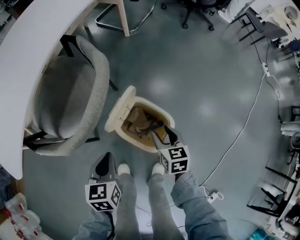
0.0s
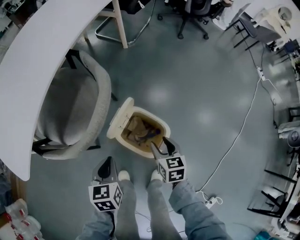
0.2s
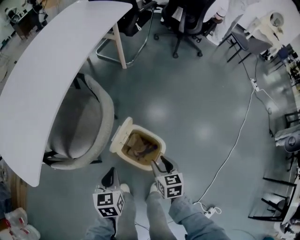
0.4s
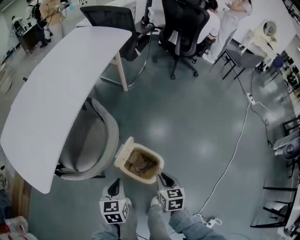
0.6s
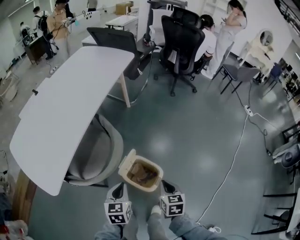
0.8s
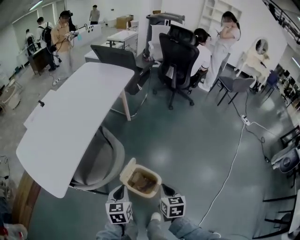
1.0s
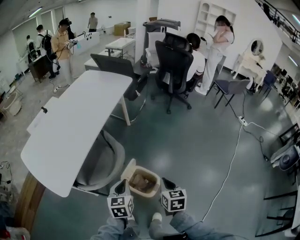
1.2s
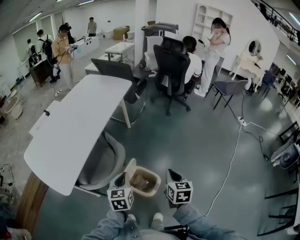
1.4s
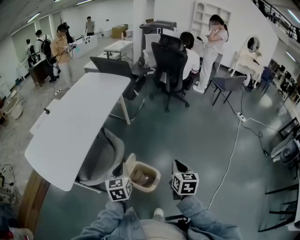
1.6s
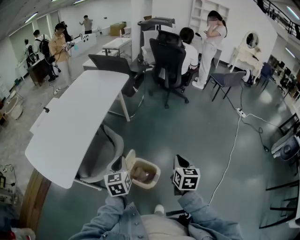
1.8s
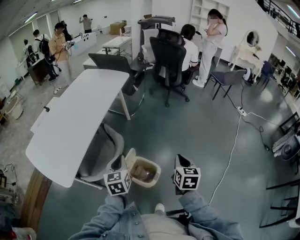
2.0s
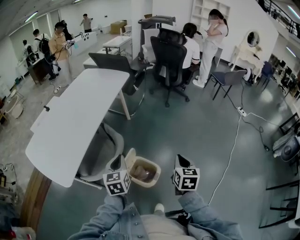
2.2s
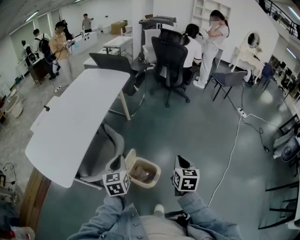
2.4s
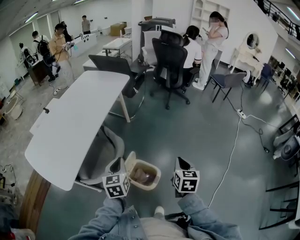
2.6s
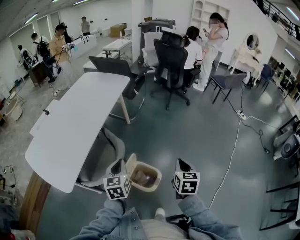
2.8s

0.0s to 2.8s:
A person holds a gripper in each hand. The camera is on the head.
0.0s to 1.4s: The grippers both shift upward by approximately 40 cm. The right gripper closes.
1.4s to 2.8s: The right gripper shifts by approximately 5 cm.

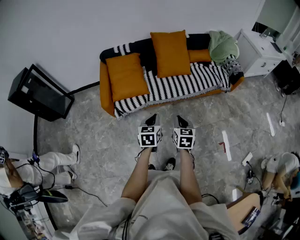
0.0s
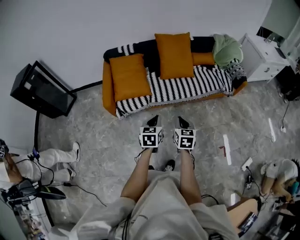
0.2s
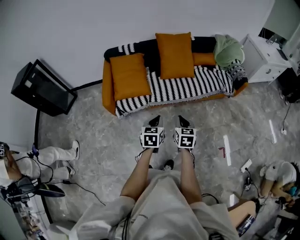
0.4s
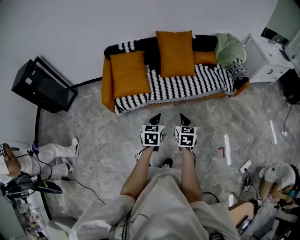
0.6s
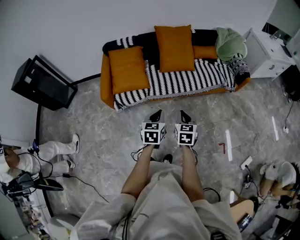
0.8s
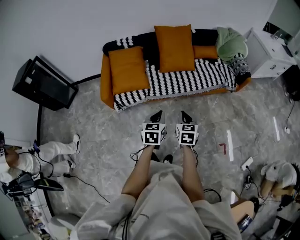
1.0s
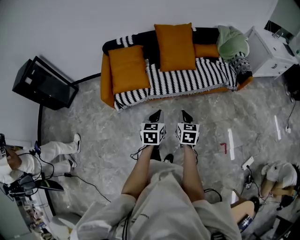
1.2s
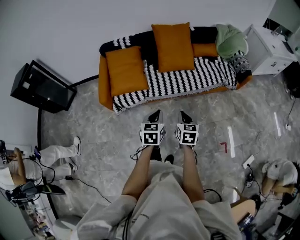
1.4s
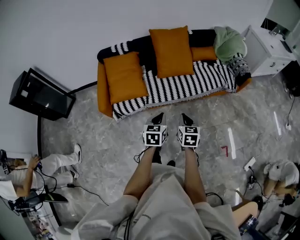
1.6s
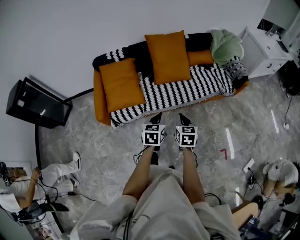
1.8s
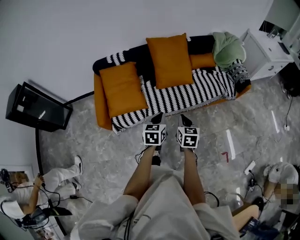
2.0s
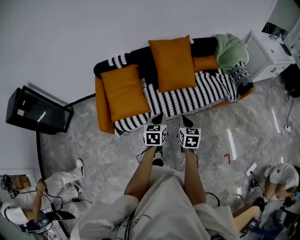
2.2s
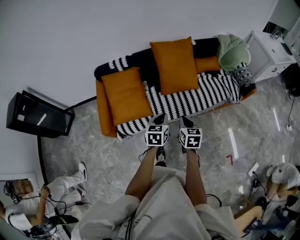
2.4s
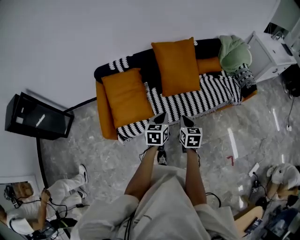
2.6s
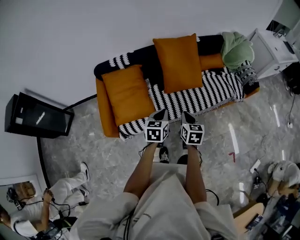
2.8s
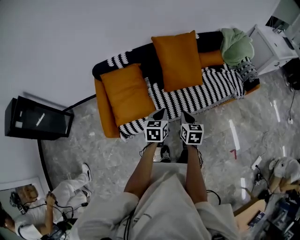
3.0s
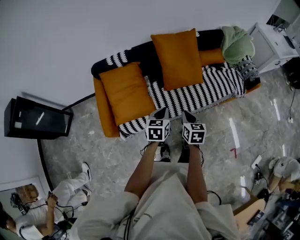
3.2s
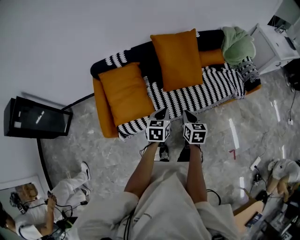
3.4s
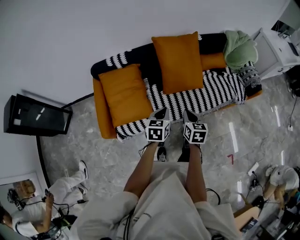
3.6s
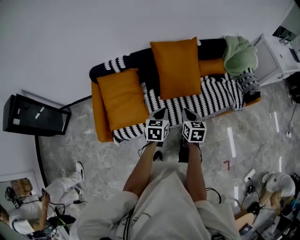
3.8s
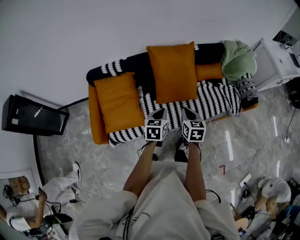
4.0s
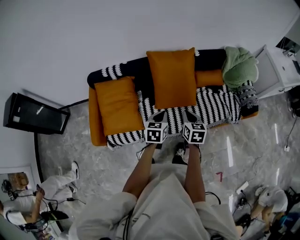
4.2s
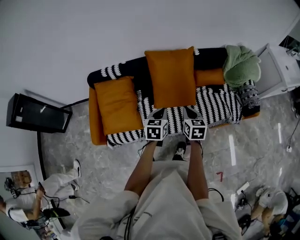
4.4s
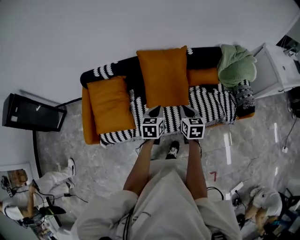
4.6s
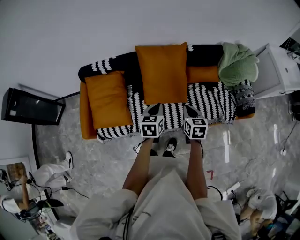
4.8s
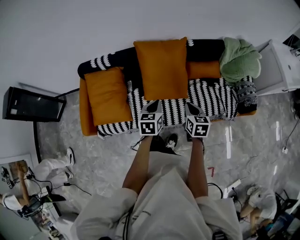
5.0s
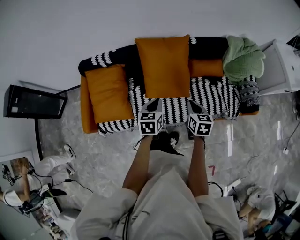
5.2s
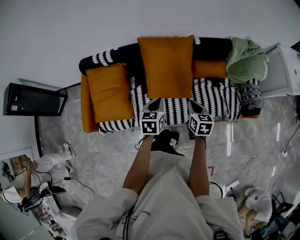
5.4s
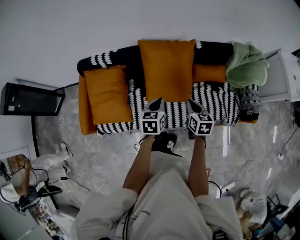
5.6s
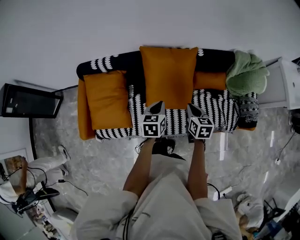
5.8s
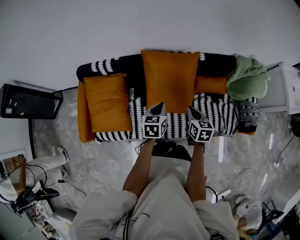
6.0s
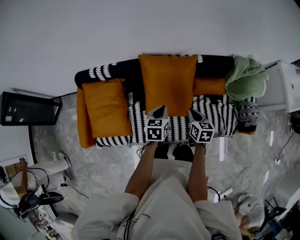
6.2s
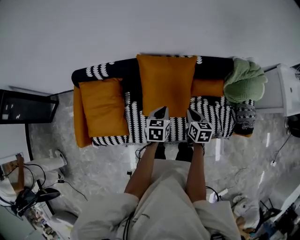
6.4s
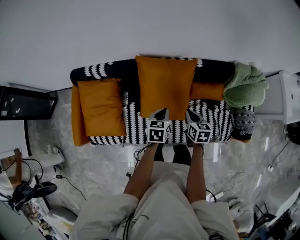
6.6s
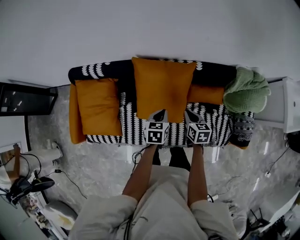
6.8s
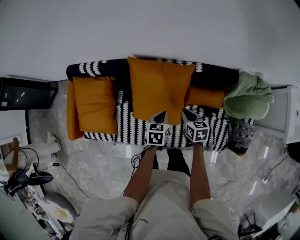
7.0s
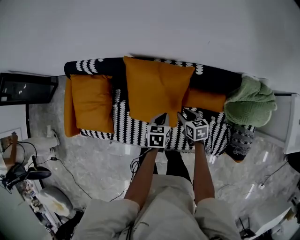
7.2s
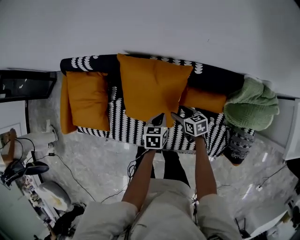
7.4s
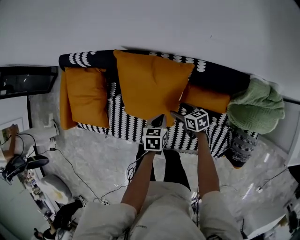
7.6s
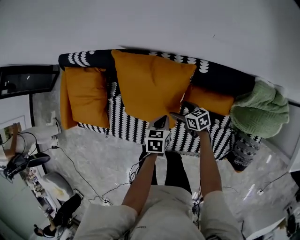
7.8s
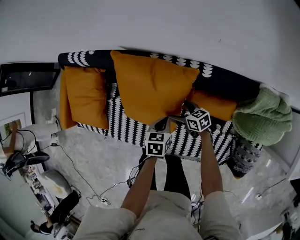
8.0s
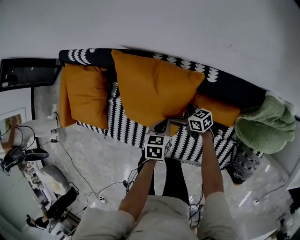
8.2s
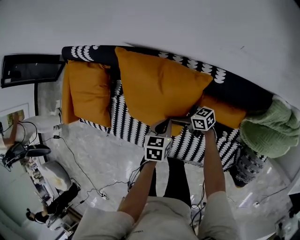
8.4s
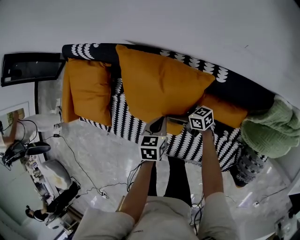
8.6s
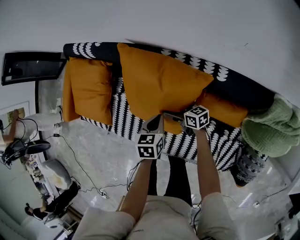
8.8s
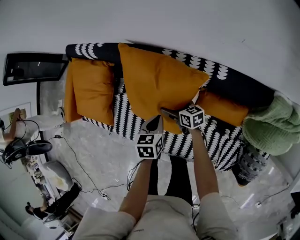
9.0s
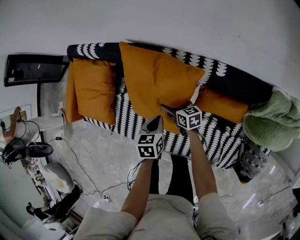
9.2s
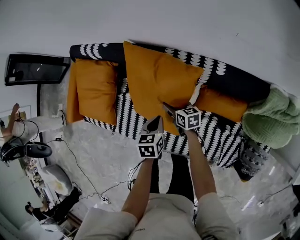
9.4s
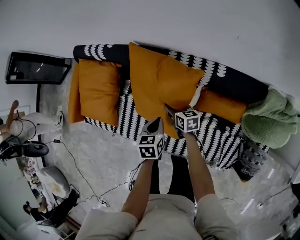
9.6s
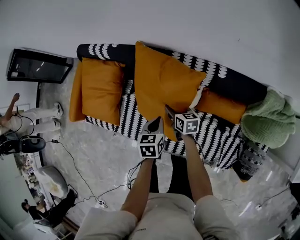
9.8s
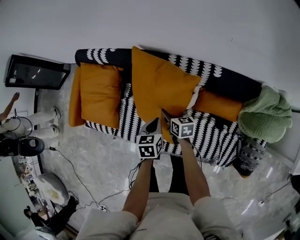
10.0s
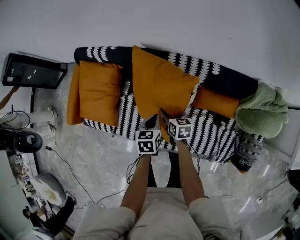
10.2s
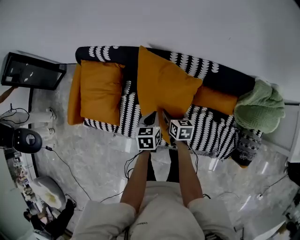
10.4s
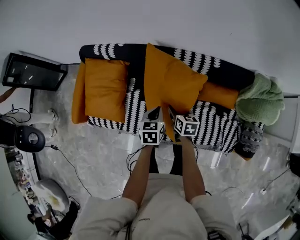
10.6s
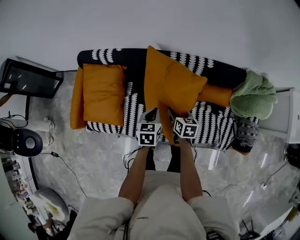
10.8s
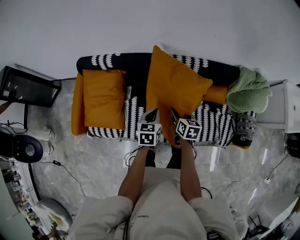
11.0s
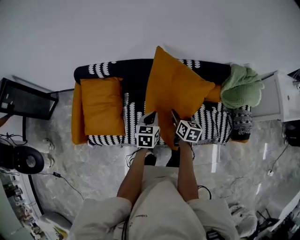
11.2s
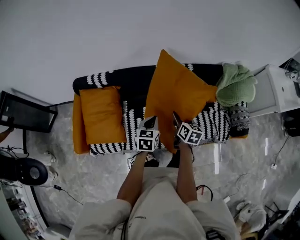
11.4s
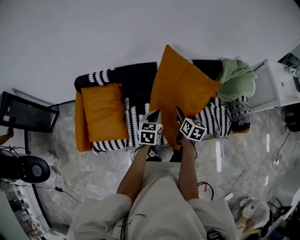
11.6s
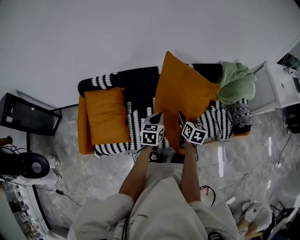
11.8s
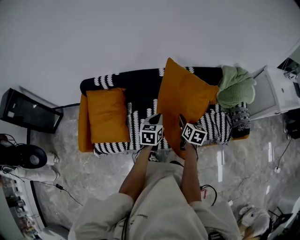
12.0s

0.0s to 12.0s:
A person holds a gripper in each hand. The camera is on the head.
0.0s to 1.6s: Both grippers move forward and to the right, about 10 cm.
1.6s to 3.0s: The grippers both shift forward and to the left by some 25 cm.
3.0s to 4.4s: Both grippers move forward and to the right, about 25 cm.
4.4s to 6.0s: Both grippers move forward, approximately 15 cm.
6.0s to 7.6s: The right gripper heads downward, covering approximately 20 cm, swivels roughly 40 degrees, and opens. Meanwhile the left gripper ends up about 25 cm from where it was, and rotates approximately 20 degrees.
7.6s to 9.0s: The right gripper travels forward, to the left and downward by roughly 15 cm, and opens its fingers. Meanwhile the left gripper shifts by some 5 cm.
9.0s to 10.4s: The right gripper moves upward, backward and to the left, some 20 cm, rotates some 30 degrees, and closes its fingers. The left gripper travels to the left and upward by roughly 15 cm.
10.4s to 12.0s: Both grippers travel together upward, approximately 15 cm. The right gripper turns by approximately 30 degrees, while the left gripper changes its angle by roughly 30 degrees.

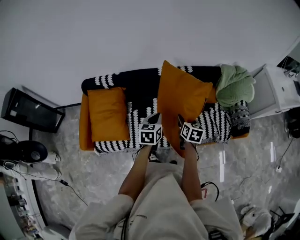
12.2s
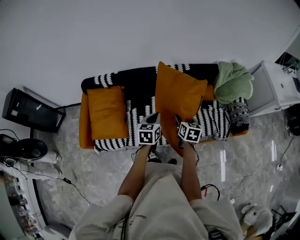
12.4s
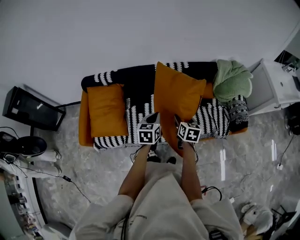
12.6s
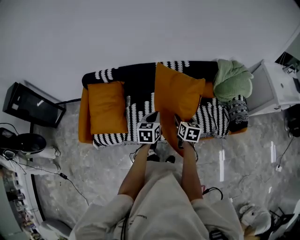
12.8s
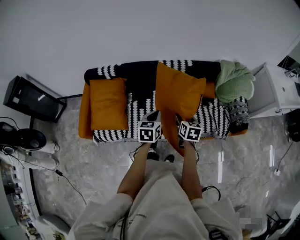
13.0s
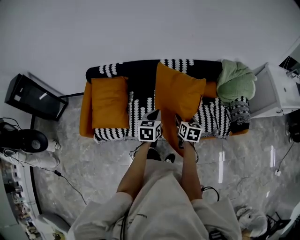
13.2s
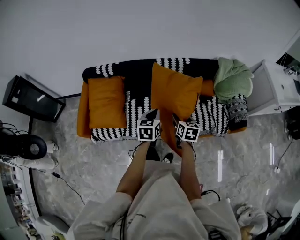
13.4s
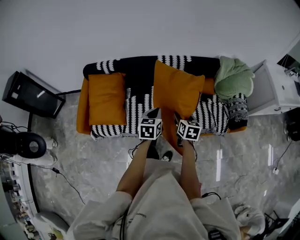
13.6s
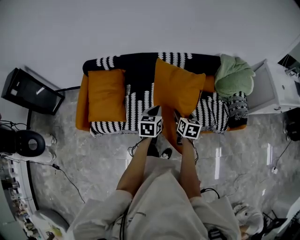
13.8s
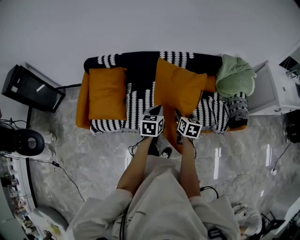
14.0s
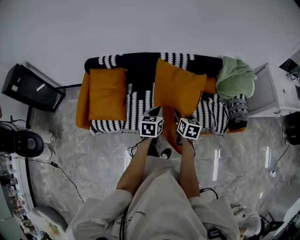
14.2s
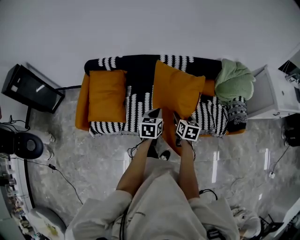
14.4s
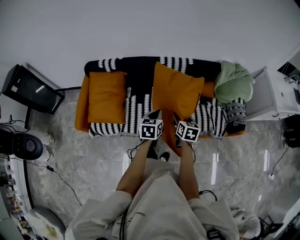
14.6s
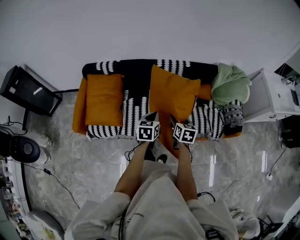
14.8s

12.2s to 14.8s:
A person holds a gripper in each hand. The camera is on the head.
12.2s to 13.4s: The grippers both shift backward by roughly 10 cm.
13.4s to 14.8s: The grippers make only small movements.

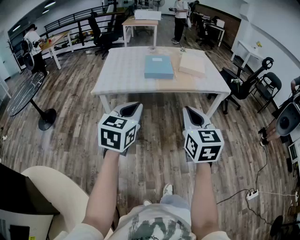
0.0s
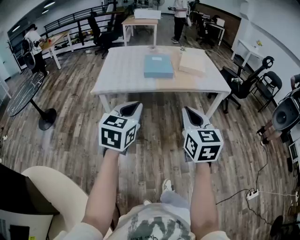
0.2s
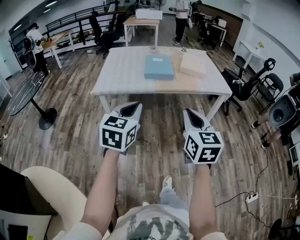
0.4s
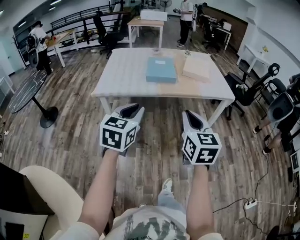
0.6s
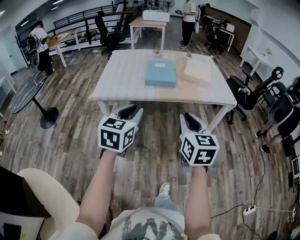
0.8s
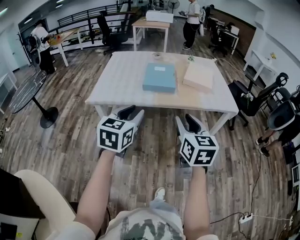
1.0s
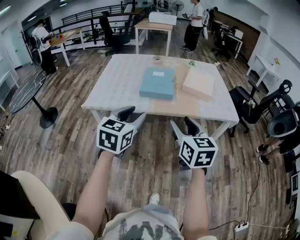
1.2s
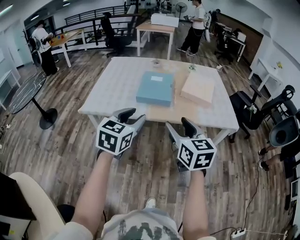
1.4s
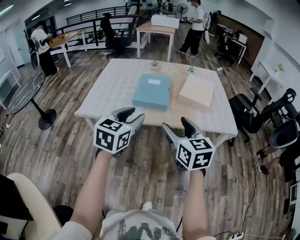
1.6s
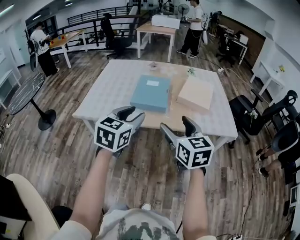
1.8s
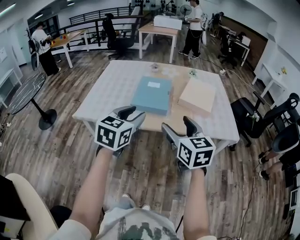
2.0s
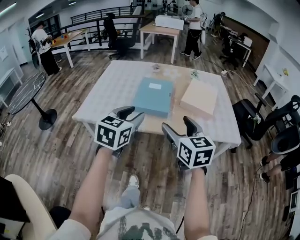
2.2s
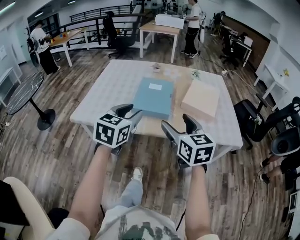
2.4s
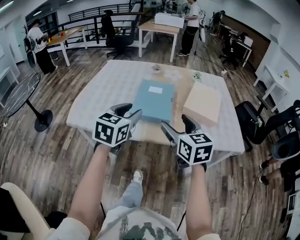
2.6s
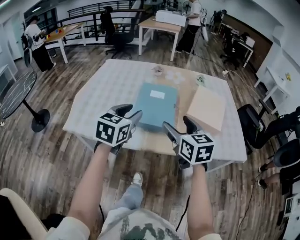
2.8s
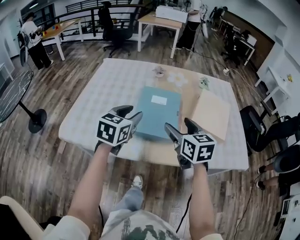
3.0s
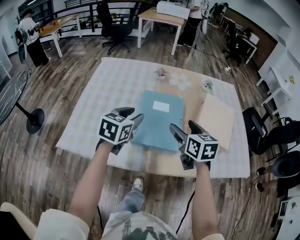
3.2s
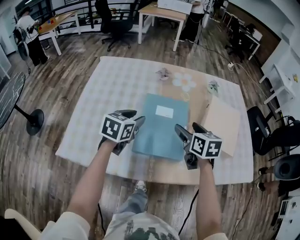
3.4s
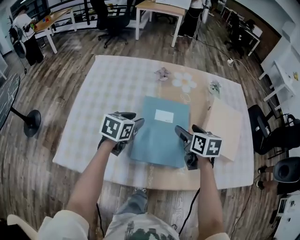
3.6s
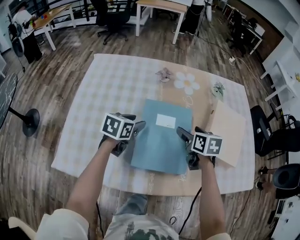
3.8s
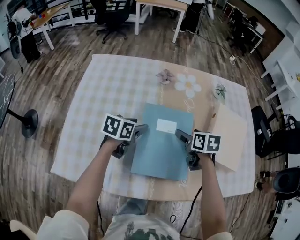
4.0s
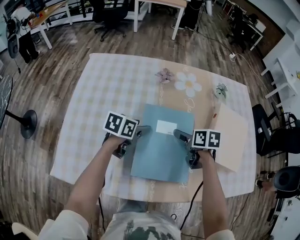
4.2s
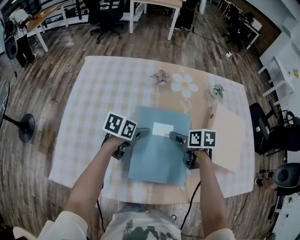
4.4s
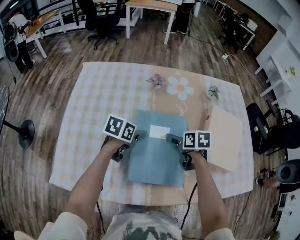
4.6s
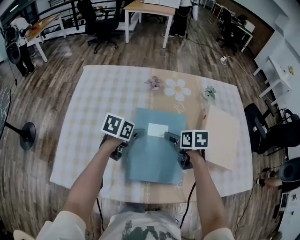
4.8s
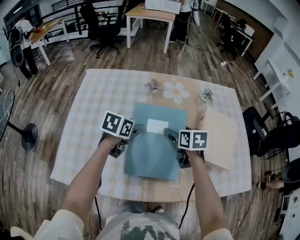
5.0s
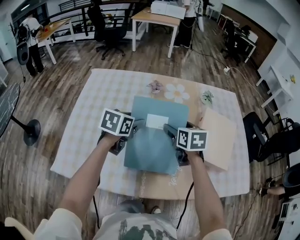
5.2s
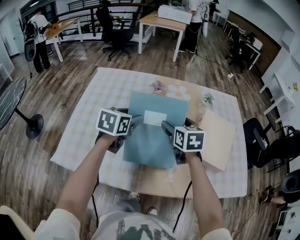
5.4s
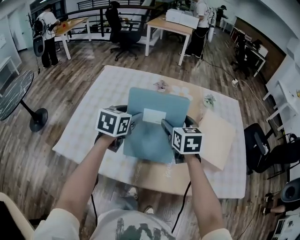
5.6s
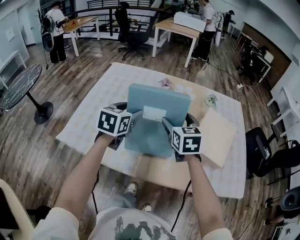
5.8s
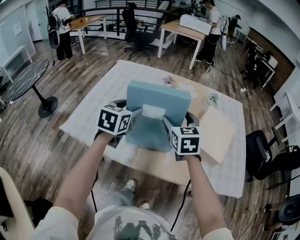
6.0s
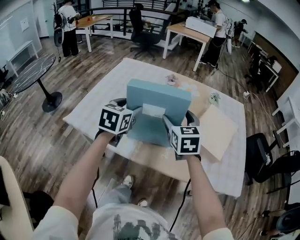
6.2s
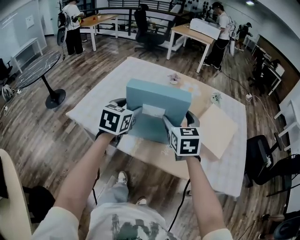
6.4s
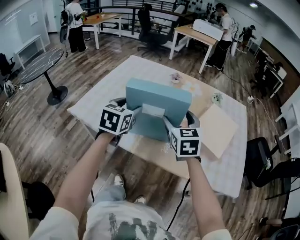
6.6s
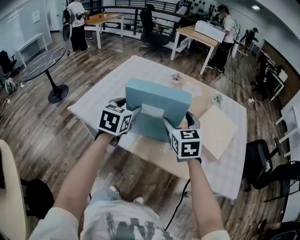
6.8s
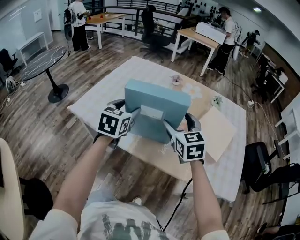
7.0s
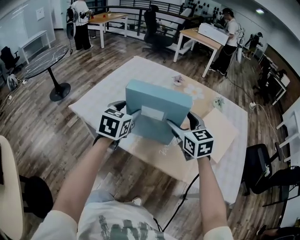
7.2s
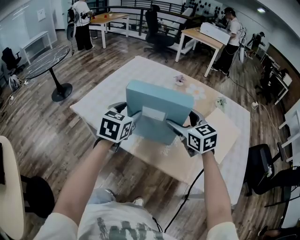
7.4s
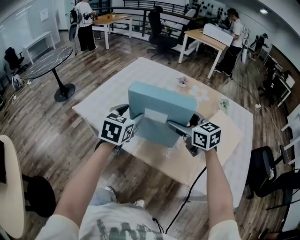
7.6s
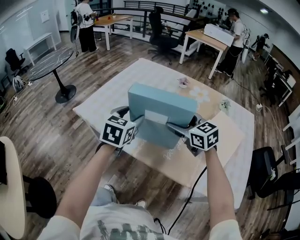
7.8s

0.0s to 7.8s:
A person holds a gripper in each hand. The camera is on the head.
0.0s to 1.6s: The left gripper travels forward and to the right by approximately 30 cm, and opens. The right gripper shifts roughly 30 cm forward, rotates roughly 20 degrees, and opens its fingers.
1.6s to 3.2s: Both grippers move forward, approximately 35 cm.
3.2s to 4.6s: Both grippers travel together downward and forward, about 20 cm. The left gripper rotates approximately 30 degrees. Meanwhile the right gripper rotates some 30 degrees.
4.6s to 6.2s: The grippers both shift upward and backward by approximately 25 cm. The left gripper rotates roughly 50 degrees. Meanwhile the right gripper points its fingers some 30 degrees further upward.
6.2s to 7.8s: The left gripper changes place by approximately 5 cm. Meanwhile the right gripper swivels approximately 40 degrees.
